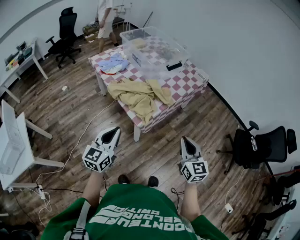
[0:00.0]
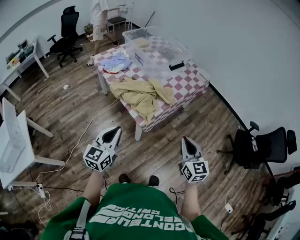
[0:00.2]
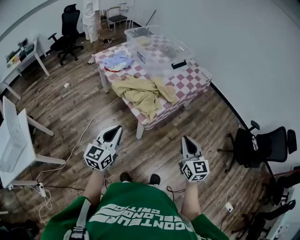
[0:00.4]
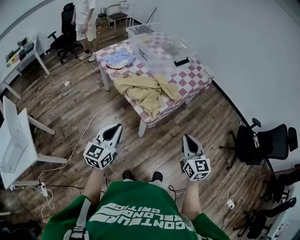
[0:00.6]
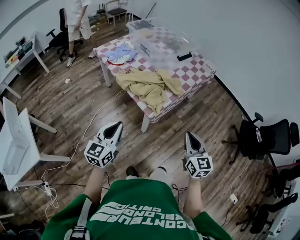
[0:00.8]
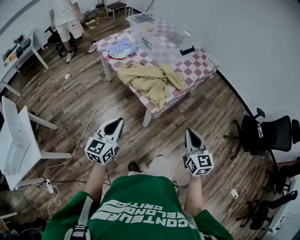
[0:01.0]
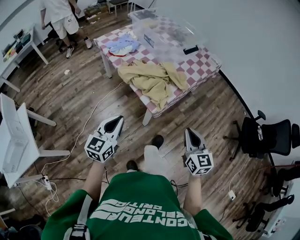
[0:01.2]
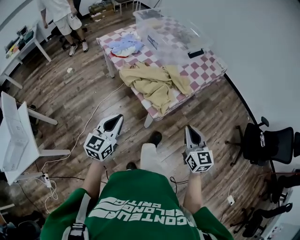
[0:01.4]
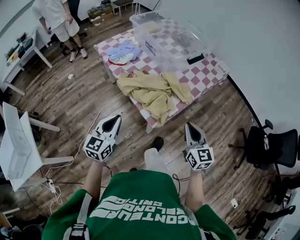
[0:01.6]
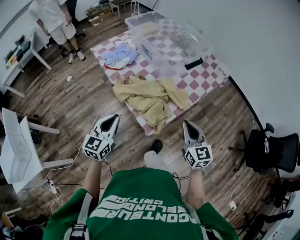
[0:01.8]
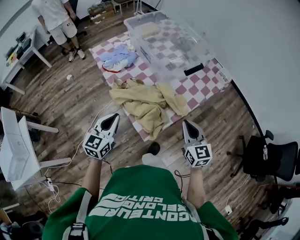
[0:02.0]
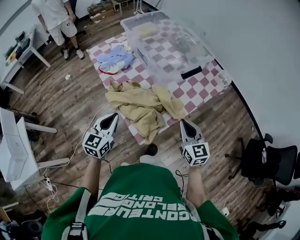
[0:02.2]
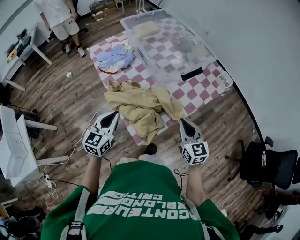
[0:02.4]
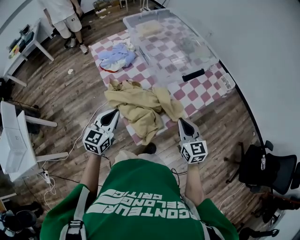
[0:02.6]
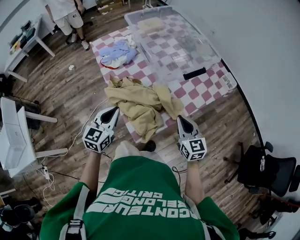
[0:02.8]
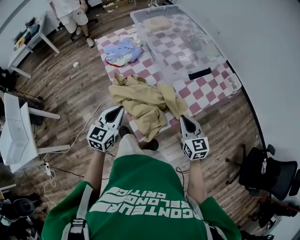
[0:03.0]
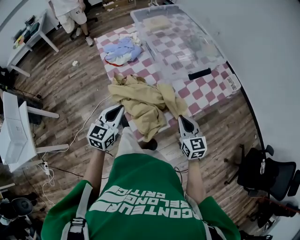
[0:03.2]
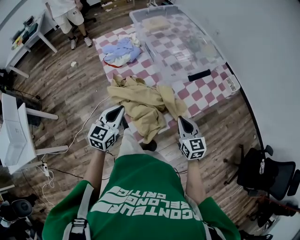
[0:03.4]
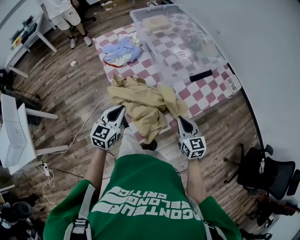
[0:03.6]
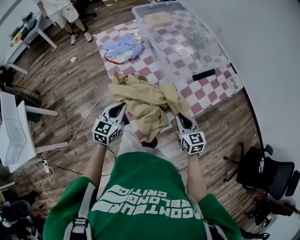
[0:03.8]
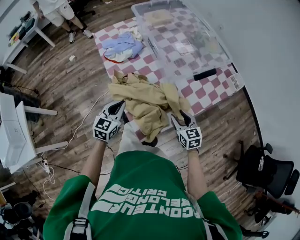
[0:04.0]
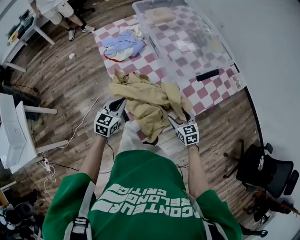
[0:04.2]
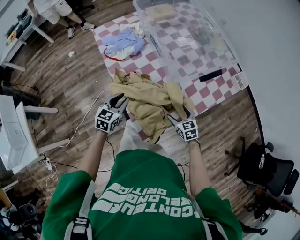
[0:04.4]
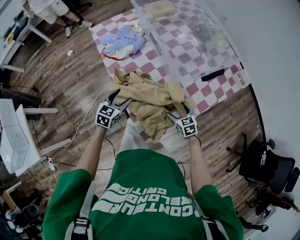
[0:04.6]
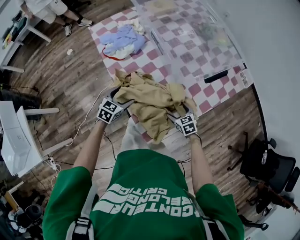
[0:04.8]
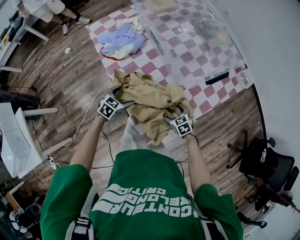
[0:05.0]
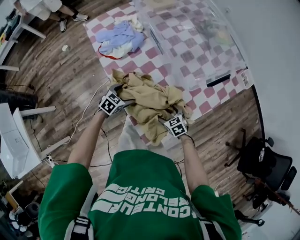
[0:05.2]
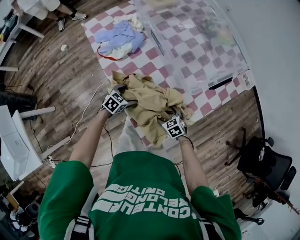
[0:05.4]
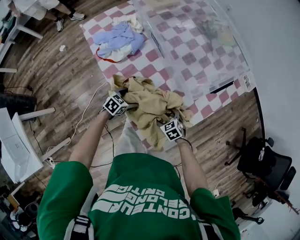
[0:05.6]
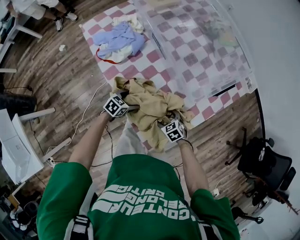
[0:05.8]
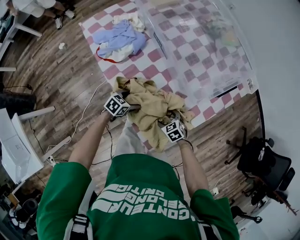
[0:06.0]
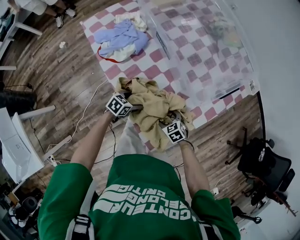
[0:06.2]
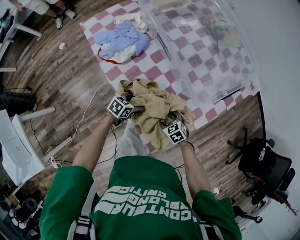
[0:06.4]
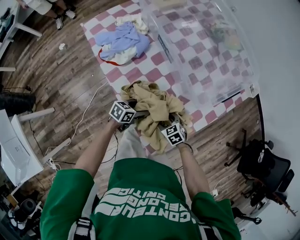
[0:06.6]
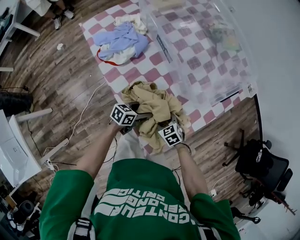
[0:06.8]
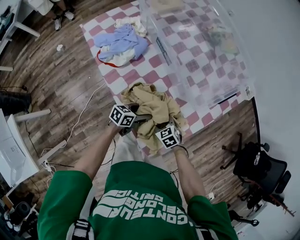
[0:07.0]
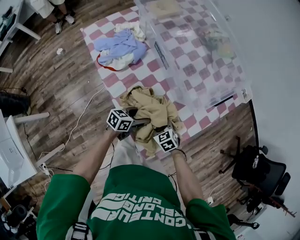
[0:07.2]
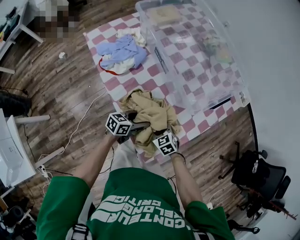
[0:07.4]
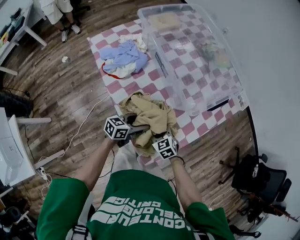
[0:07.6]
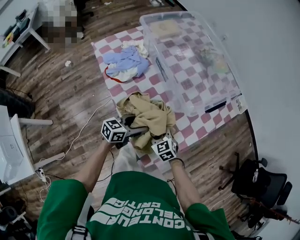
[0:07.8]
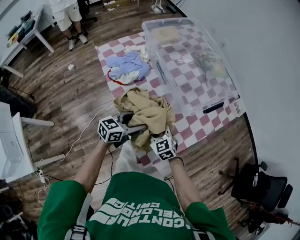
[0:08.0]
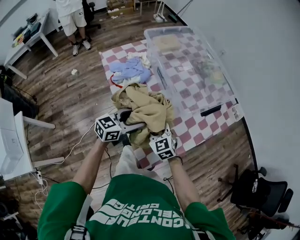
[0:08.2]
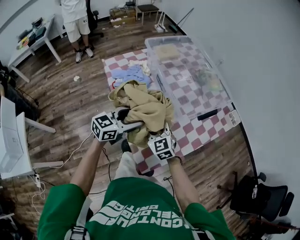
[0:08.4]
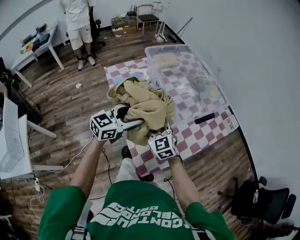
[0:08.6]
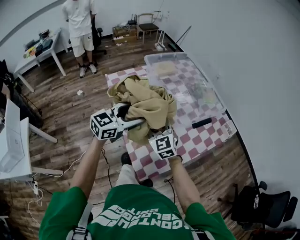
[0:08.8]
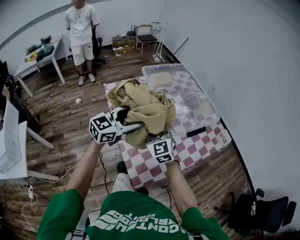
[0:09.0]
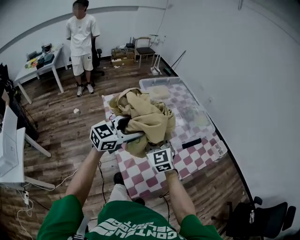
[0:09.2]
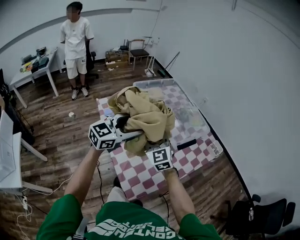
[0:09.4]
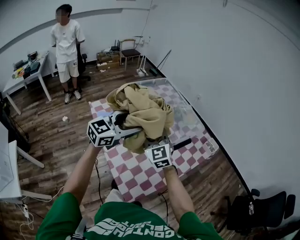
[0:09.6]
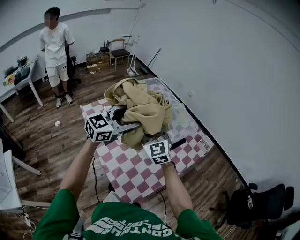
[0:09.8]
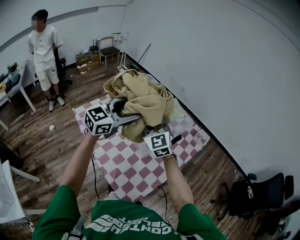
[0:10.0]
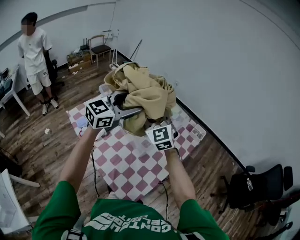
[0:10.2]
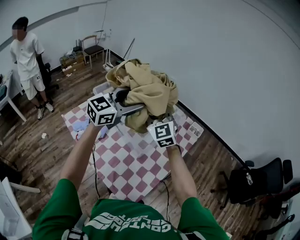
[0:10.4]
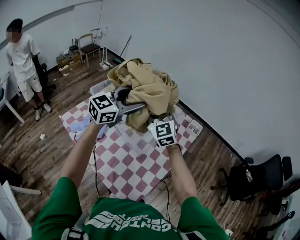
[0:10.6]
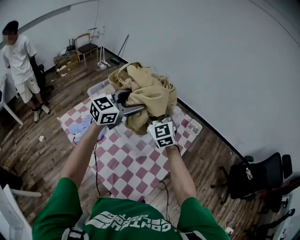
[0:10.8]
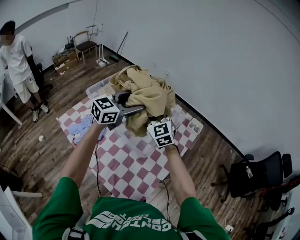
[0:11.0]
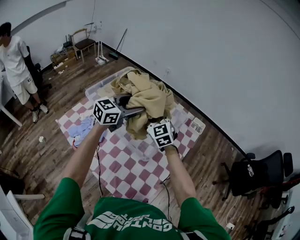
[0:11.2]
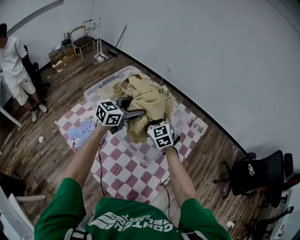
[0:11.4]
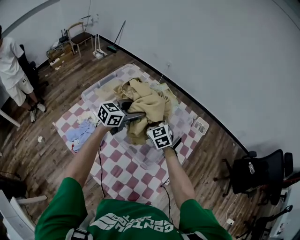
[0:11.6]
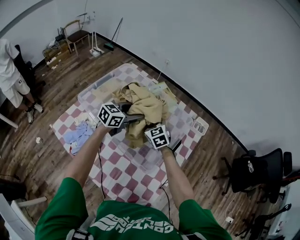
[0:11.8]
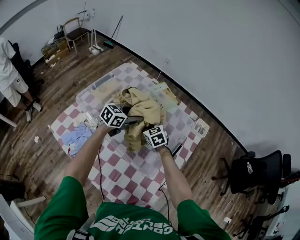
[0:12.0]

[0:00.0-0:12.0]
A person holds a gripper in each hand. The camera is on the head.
0:00.0 to 0:01.6: The right gripper heads forward and to the left, covering some 15 cm, while the left gripper moves forward, to the left and downward, about 15 cm.
0:01.6 to 0:03.0: The right gripper goes about 20 cm forward; the left gripper shifts some 20 cm forward and to the right.
0:03.0 to 0:04.4: The right gripper goes roughly 20 cm downward, turns by about 20 degrees, and opens up. Meanwhile the left gripper shifts some 15 cm downward and forward.
0:04.4 to 0:06.0: The left gripper goes some 20 cm downward, changes its angle by approximately 40 degrees, and opens its fingers. The right gripper heads downward and to the left, covering approximately 15 cm.
0:06.0 to 0:07.6: The grippers both shift upward by some 10 cm. The left gripper changes its angle by approximately 30 degrees, while the right gripper closes its fingers.
0:07.6 to 0:09.0: The grippers both shift upward by about 35 cm. The left gripper changes its angle by approximately 50 degrees, while the right gripper tips its fingers upward by some 40 degrees.
0:09.0 to 0:10.4: Both grippers travel together forward, upward and to the right, roughly 25 cm. The right gripper swivels roughly 20 degrees. The left gripper rotates about 20 degrees.
0:10.4 to 0:12.0: Both grippers move downward and forward, approximately 35 cm. The right gripper angles its fingers downward, by approximately 30 degrees. Meanwhile the left gripper swivels about 40 degrees.

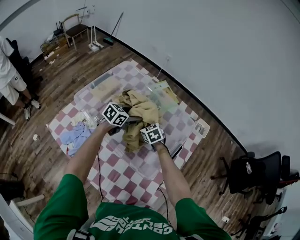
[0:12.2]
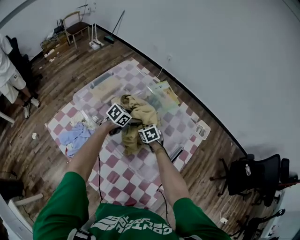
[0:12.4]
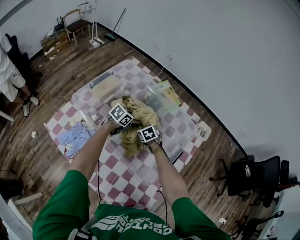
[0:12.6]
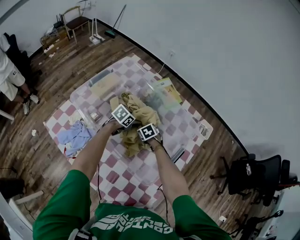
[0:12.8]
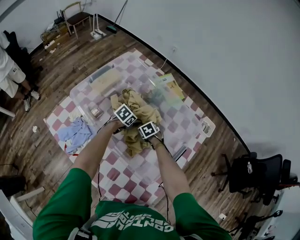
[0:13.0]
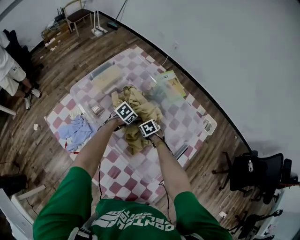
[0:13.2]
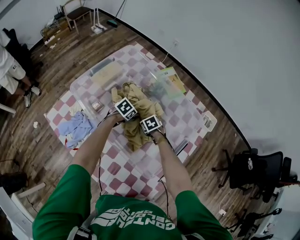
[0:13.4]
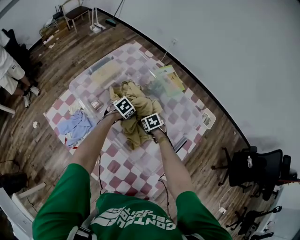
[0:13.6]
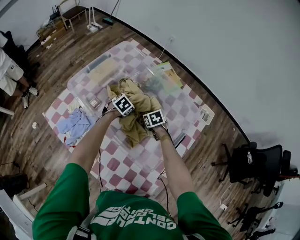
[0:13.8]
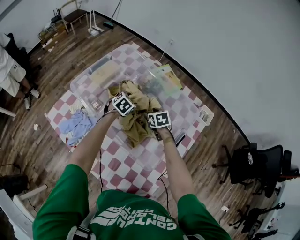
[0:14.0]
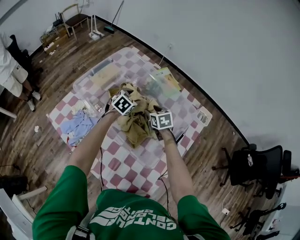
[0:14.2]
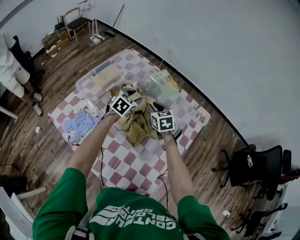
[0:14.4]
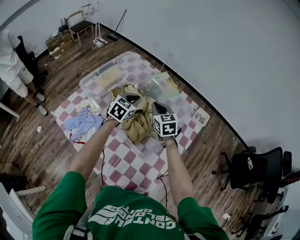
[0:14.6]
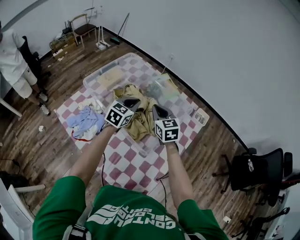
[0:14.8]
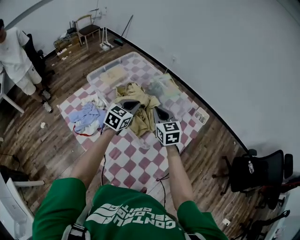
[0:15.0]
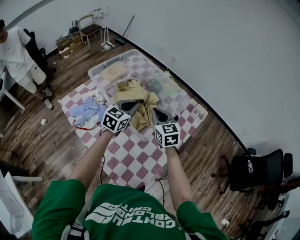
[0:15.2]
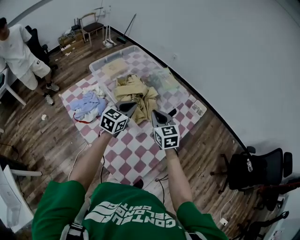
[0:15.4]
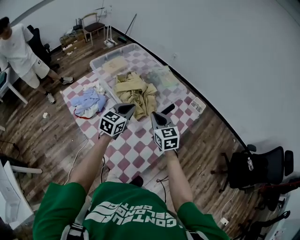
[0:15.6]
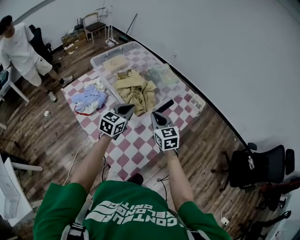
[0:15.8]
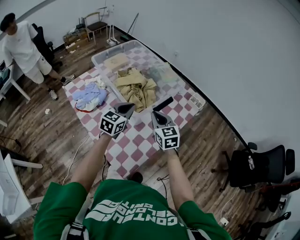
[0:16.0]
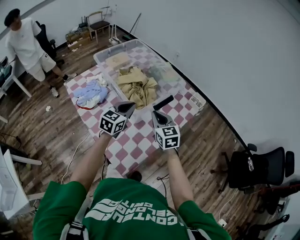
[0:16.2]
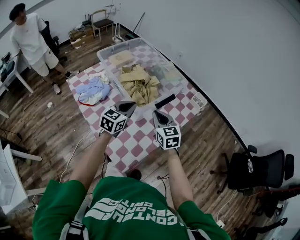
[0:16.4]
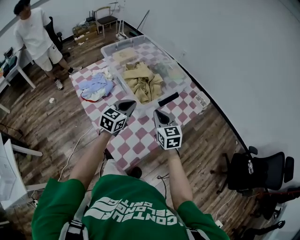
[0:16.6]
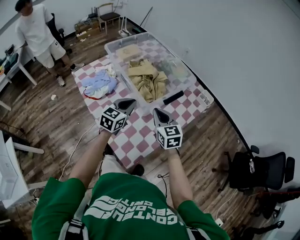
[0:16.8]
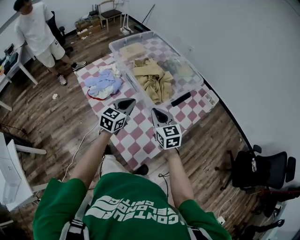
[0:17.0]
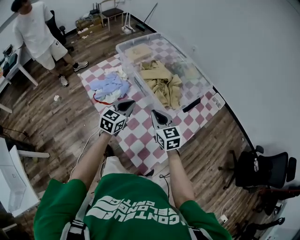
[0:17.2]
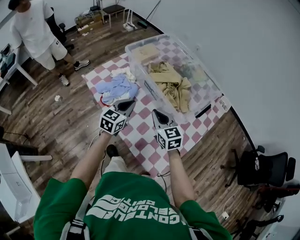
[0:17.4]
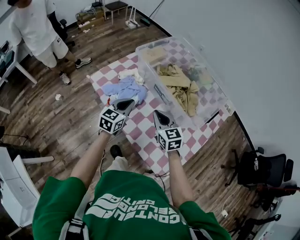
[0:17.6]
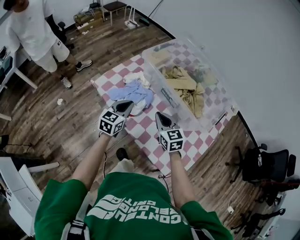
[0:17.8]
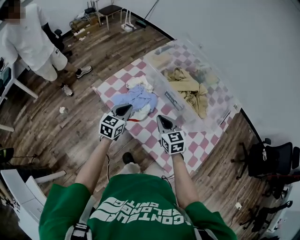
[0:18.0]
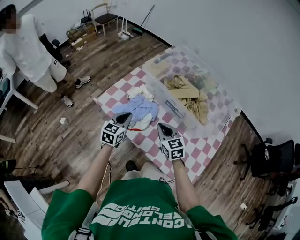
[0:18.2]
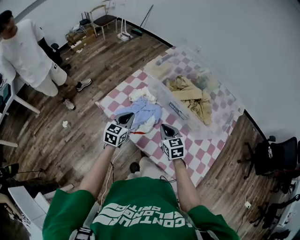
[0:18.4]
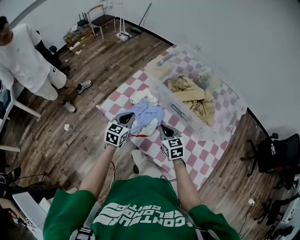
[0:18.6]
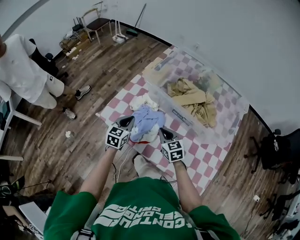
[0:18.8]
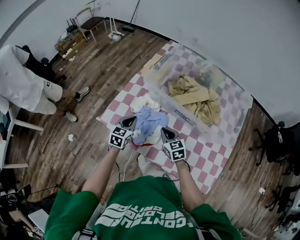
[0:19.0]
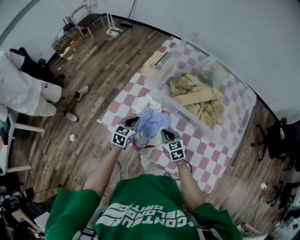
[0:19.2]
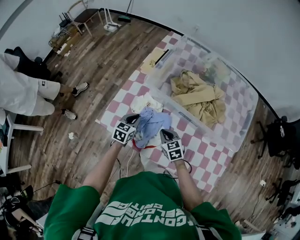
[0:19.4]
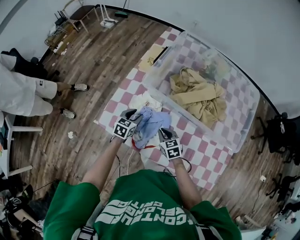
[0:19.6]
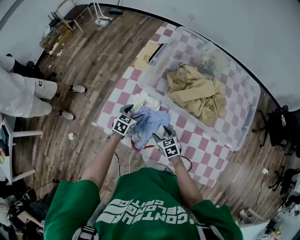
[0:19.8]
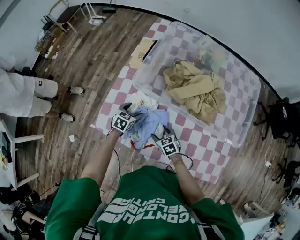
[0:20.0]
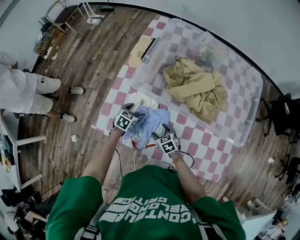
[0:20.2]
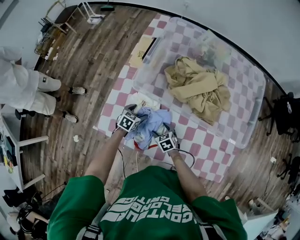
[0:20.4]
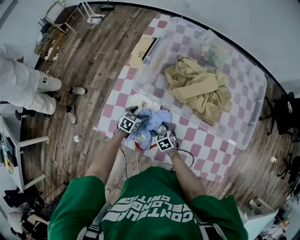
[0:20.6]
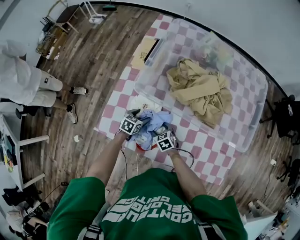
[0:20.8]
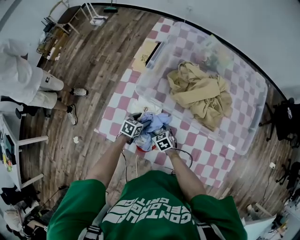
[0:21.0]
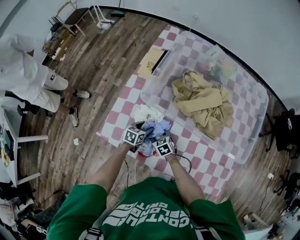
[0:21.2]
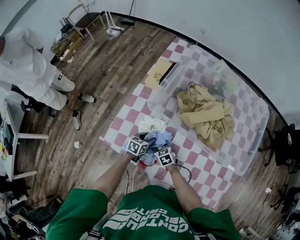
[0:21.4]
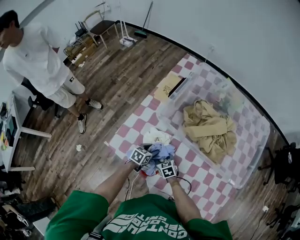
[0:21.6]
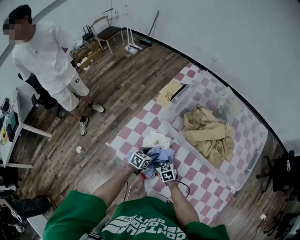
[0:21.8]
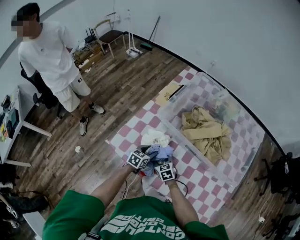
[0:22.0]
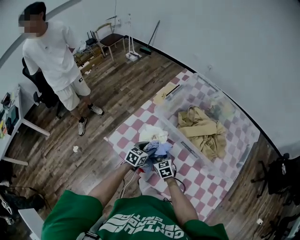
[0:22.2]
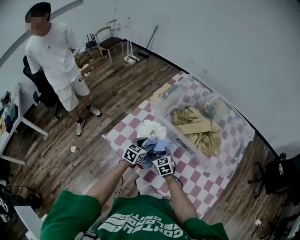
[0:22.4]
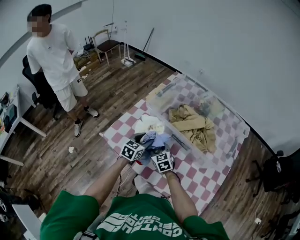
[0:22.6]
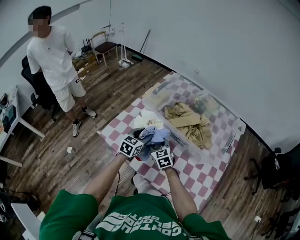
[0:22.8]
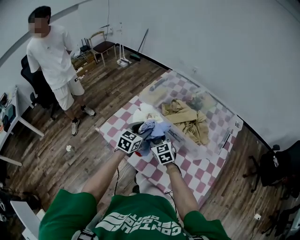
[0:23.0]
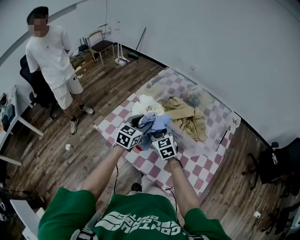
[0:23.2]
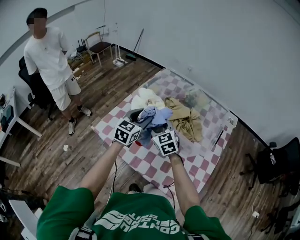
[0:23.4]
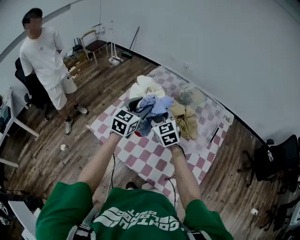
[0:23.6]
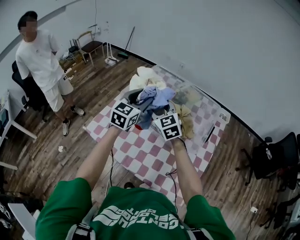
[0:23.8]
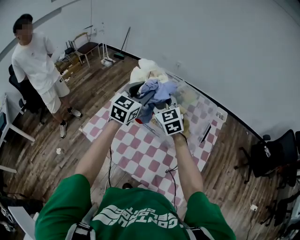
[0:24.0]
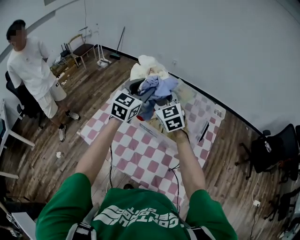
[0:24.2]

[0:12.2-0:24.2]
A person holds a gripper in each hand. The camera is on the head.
0:12.2 to 0:13.8: The left gripper shifts some 15 cm downward, and angles its fingers downward, by roughly 30 degrees; the right gripper heads downward, covering some 10 cm.
0:13.8 to 0:15.2: Both grippers travel together upward and backward, approximately 35 cm. The right gripper points its fingers about 40 degrees further upward, and closes up. The left gripper tips its fingers upward by approximately 40 degrees, and closes.
0:15.2 to 0:16.6: Both grippers travel together backward, roughly 15 cm.
0:16.6 to 0:18.2: Both grippers travel together to the left, about 40 cm.
0:18.2 to 0:19.8: The right gripper travels downward and forward by about 25 cm, swivels roughly 30 degrees, and opens up, while the left gripper goes approximately 25 cm forward and downward, swivels some 30 degrees, and opens.
0:19.8 to 0:21.2: Both grippers travel together downward, approximately 10 cm.
0:21.2 to 0:22.6: The grippers both shift upward by about 20 cm. The left gripper swivels some 30 degrees, while the right gripper changes its angle by roughly 30 degrees.
0:22.6 to 0:24.2: The two grippers go about 35 cm upward and to the right. The left gripper rotates roughly 30 degrees, while the right gripper changes its angle by roughly 20 degrees.
